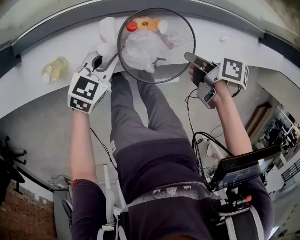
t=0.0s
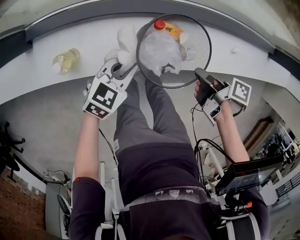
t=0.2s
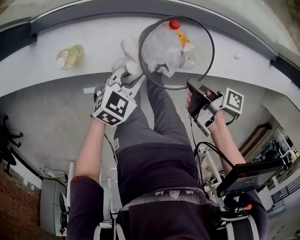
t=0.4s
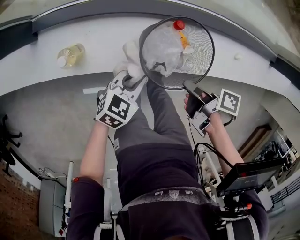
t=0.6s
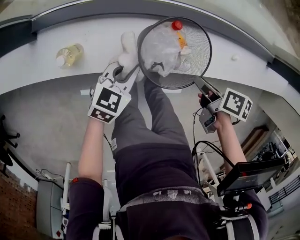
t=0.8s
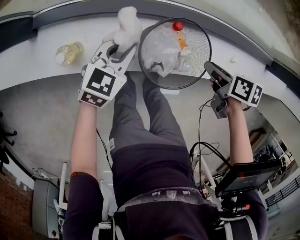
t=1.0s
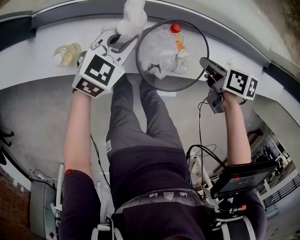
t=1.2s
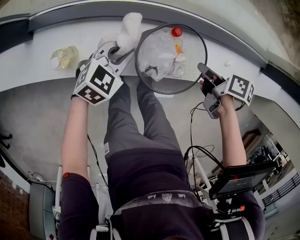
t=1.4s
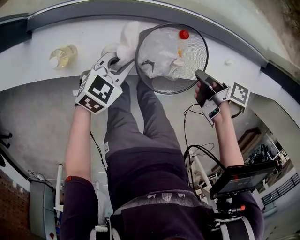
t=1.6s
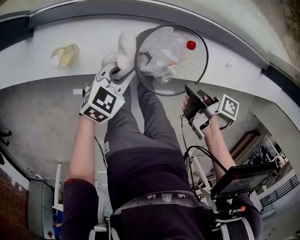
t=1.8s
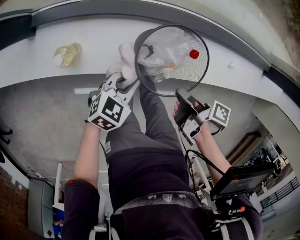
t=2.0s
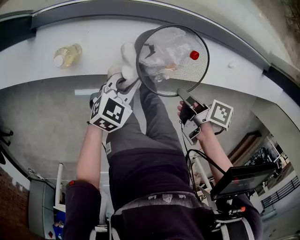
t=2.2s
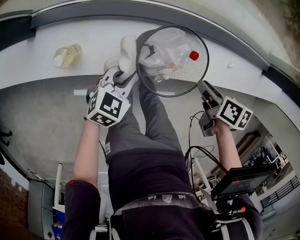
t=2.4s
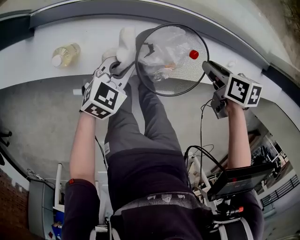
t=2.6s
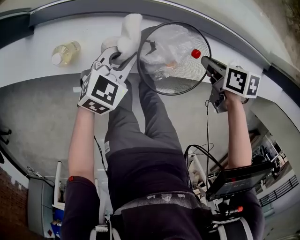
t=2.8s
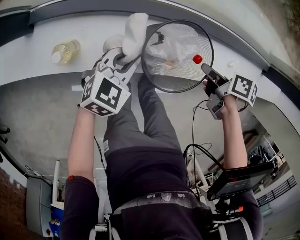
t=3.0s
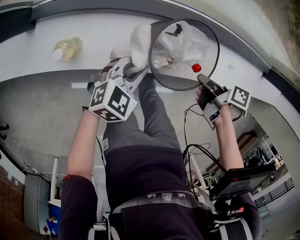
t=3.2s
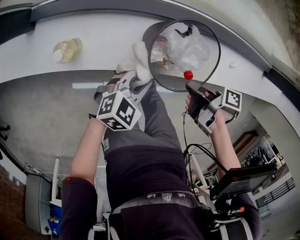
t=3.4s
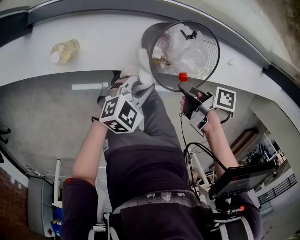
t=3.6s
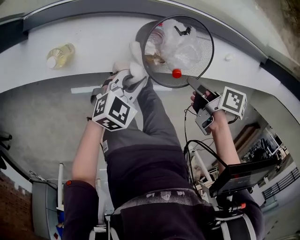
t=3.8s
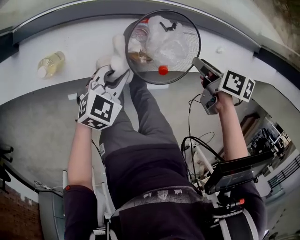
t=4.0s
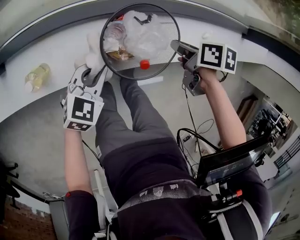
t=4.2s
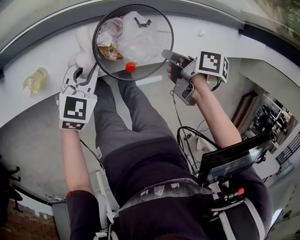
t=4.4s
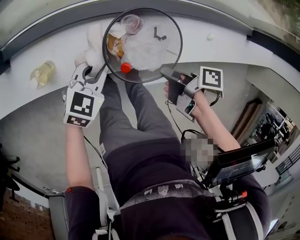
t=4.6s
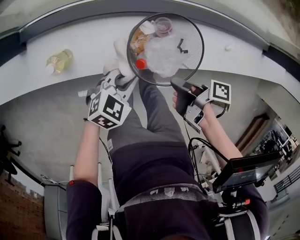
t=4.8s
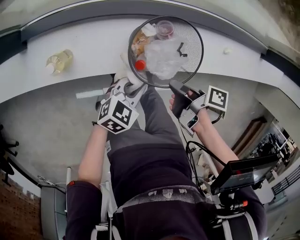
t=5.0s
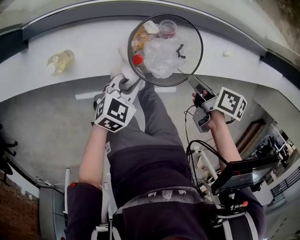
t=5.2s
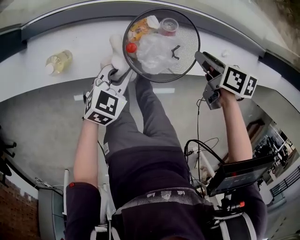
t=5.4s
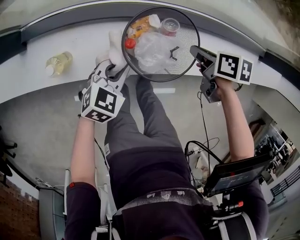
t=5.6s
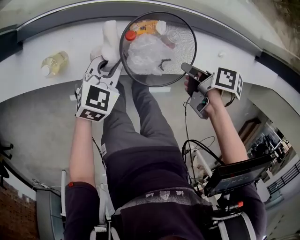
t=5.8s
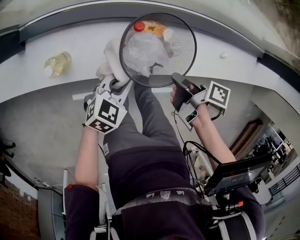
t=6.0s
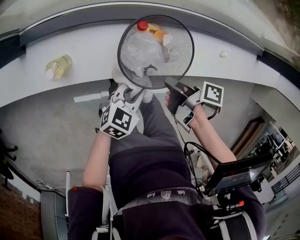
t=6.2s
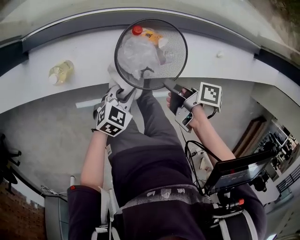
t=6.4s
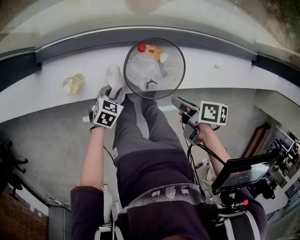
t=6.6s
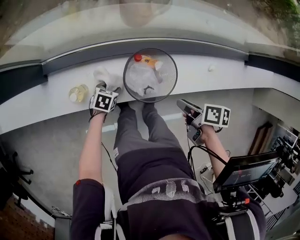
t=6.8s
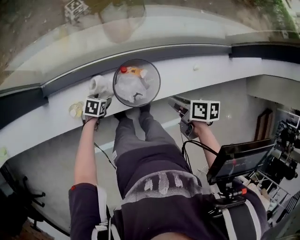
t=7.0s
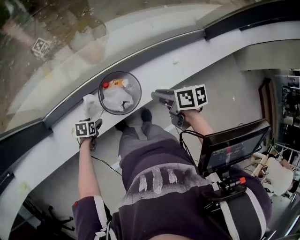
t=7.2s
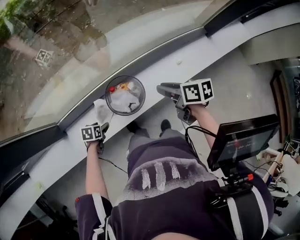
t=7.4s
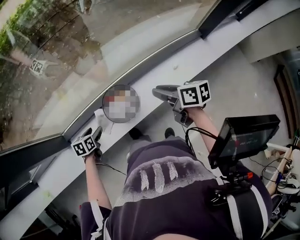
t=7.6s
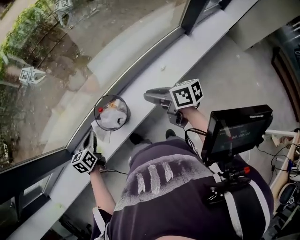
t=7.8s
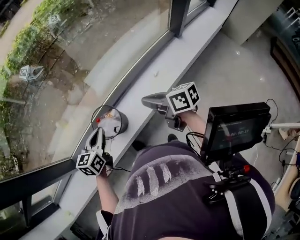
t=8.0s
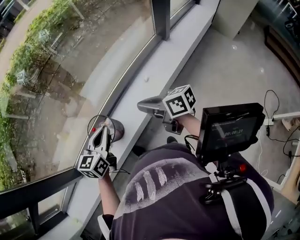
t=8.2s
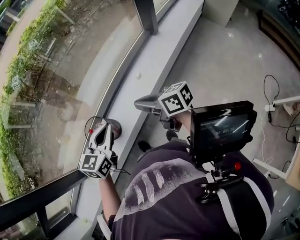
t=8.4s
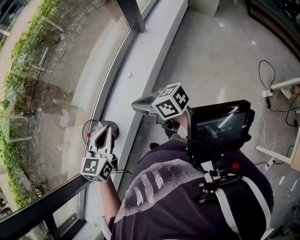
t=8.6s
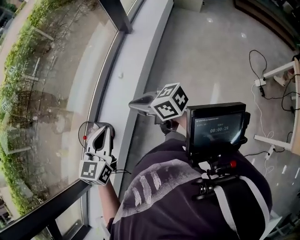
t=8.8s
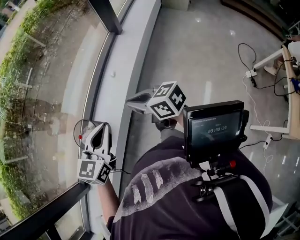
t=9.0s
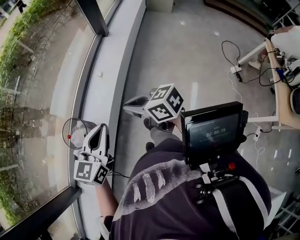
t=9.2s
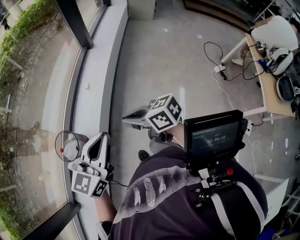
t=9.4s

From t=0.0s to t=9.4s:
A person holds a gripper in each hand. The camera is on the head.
From t=3.2s to t=4.8s: The left gripper ends up some 5 cm from where it was.
From t=6.2s to t=7.8s: The left gripper moves upward, roughly 20 cm, and opens and closes again.
From t=7.8s to t=9.4s: The left gripper moves about 35 cm, and tilts its fingers approximately 30 degrees upward.

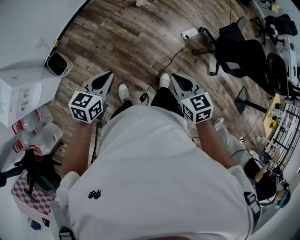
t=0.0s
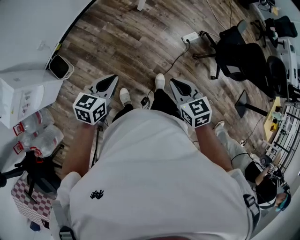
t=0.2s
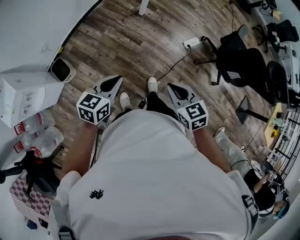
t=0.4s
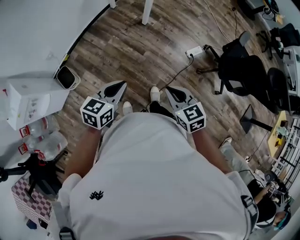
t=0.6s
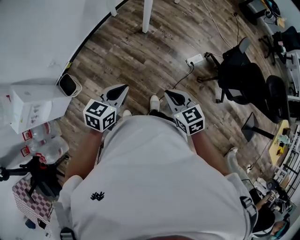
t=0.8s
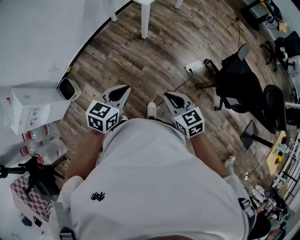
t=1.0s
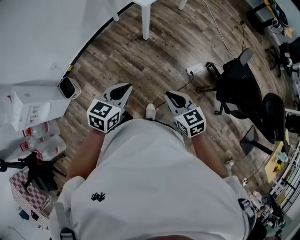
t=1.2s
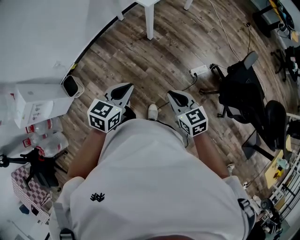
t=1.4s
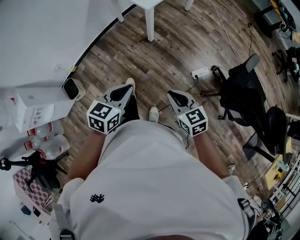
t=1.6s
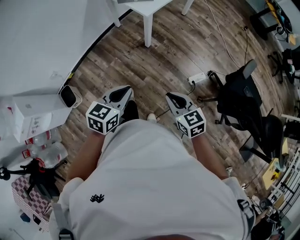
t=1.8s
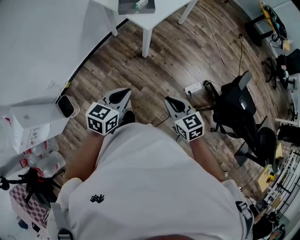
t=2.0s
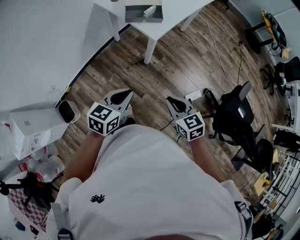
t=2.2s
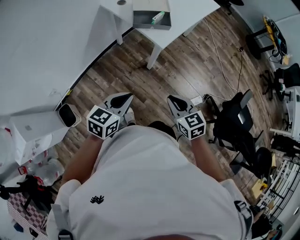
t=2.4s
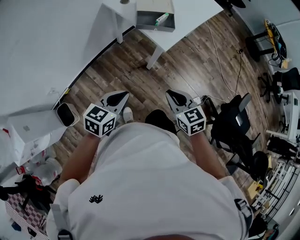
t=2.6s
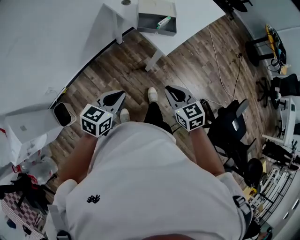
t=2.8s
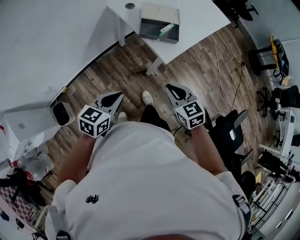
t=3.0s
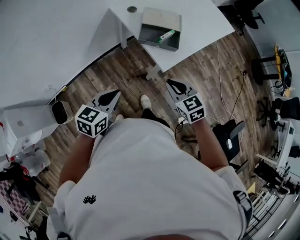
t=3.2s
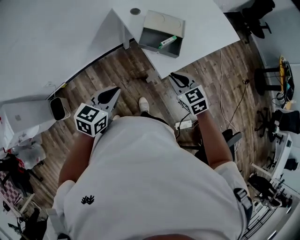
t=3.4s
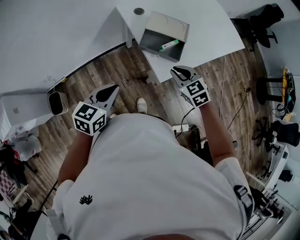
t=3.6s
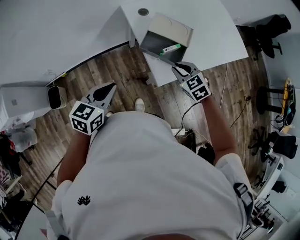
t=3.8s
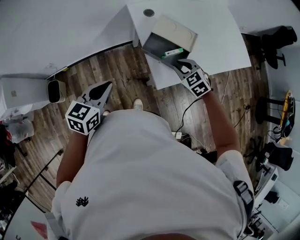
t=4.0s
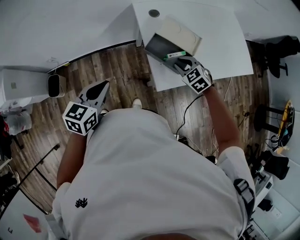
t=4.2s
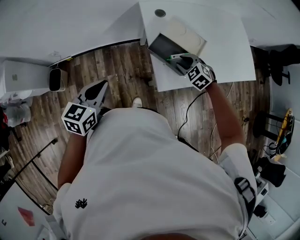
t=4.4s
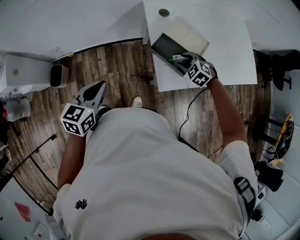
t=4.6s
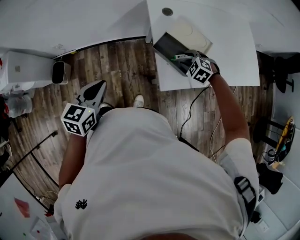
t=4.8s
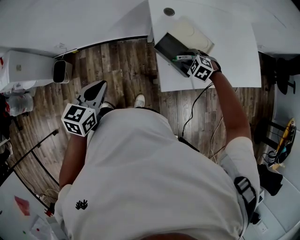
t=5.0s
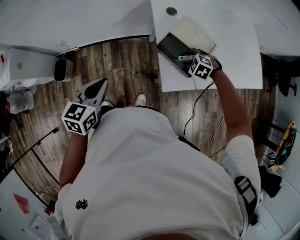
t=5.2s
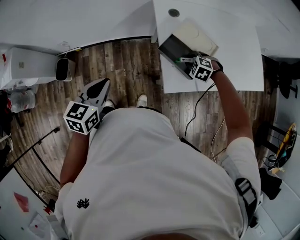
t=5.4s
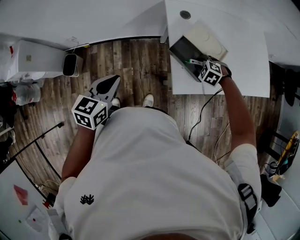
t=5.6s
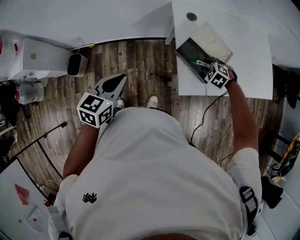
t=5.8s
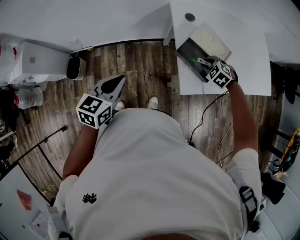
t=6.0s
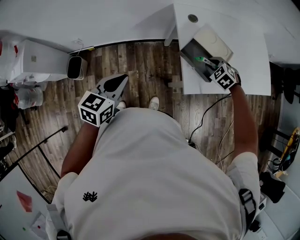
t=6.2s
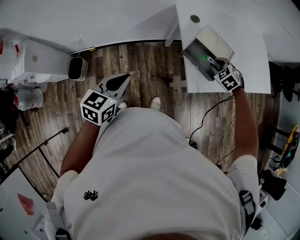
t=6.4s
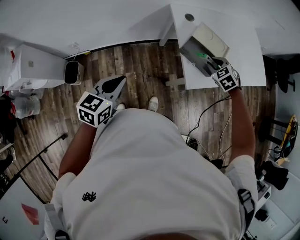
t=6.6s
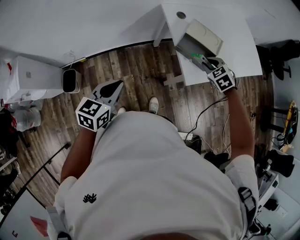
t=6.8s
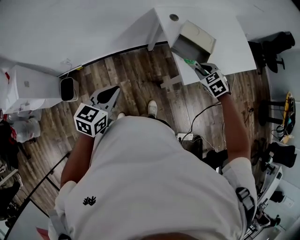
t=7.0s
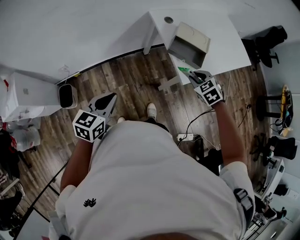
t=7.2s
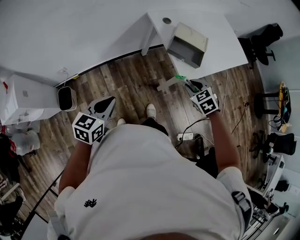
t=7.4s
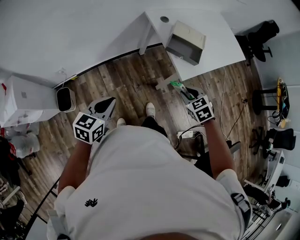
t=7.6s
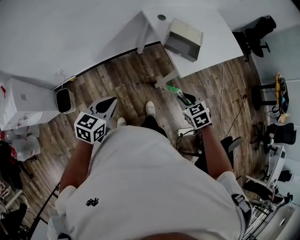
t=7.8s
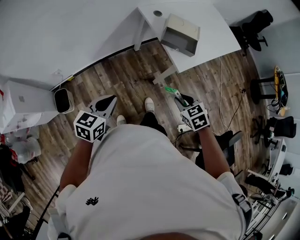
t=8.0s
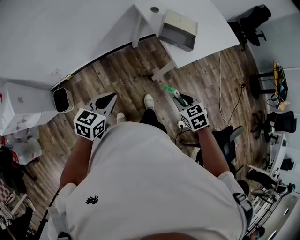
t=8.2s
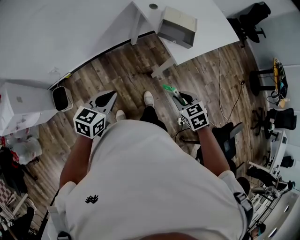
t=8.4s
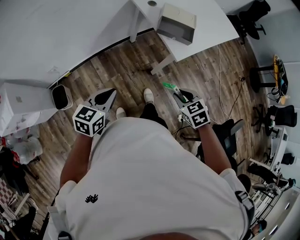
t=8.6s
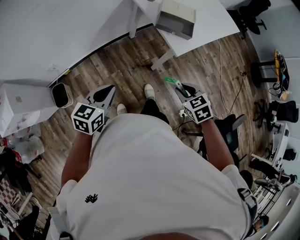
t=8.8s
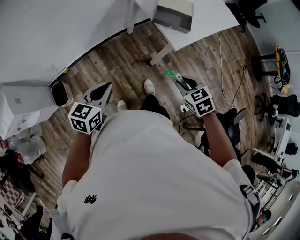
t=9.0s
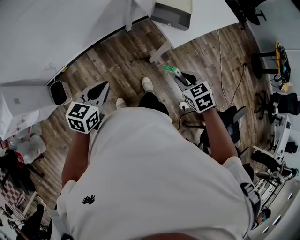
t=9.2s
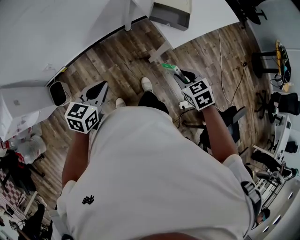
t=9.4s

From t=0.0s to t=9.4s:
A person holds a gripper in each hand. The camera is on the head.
From t=0.0s to t=1.6s: The right gripper is displaced forward and to the right by approximately 20 cm, while the left gripper goes roughly 25 cm to the right and forward.
From t=1.6s to t=3.2s: The right gripper heads forward, covering approximately 40 cm, and turns by about 20 degrees, while the left gripper shifts about 35 cm forward and to the left.
From t=3.2s to t=4.8s: The right gripper moves about 30 cm, rolls counterclockwise, seen from behind, by approximately 60 degrees, and opens up, while the left gripper turns by about 40 degrees.
From t=4.8s to t=6.2s: The right gripper closes.
From t=6.2s to t=7.8s: The left gripper moves backward and to the left, roughly 15 cm, and changes its angle by about 20 degrees; the right gripper goes some 30 cm backward, and rolls clockwise, seen from behind, by about 40 degrees.
From t=7.8s to t=9.4s: There are only small adjustments of the grippers.

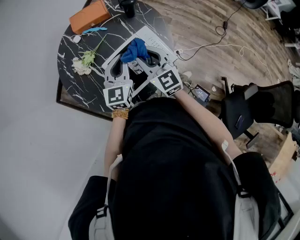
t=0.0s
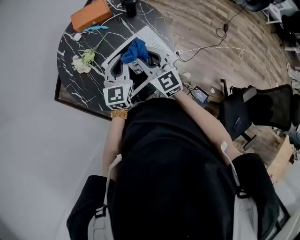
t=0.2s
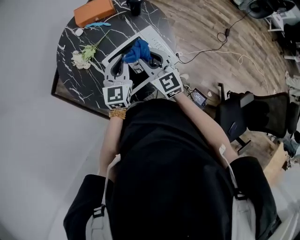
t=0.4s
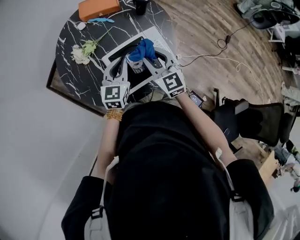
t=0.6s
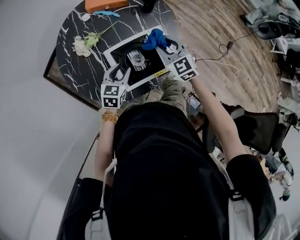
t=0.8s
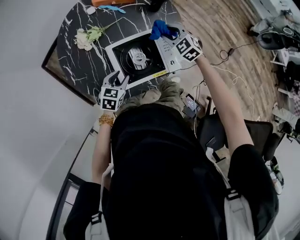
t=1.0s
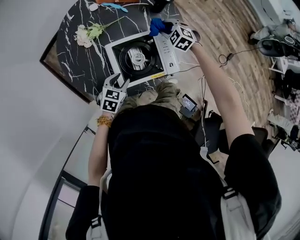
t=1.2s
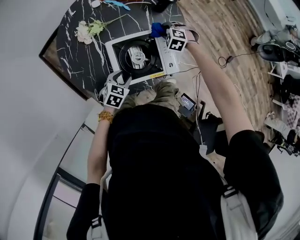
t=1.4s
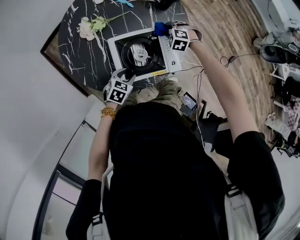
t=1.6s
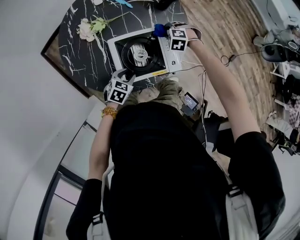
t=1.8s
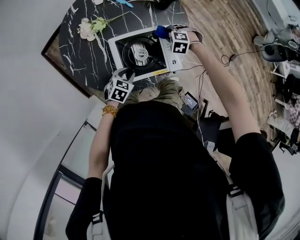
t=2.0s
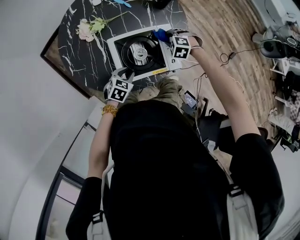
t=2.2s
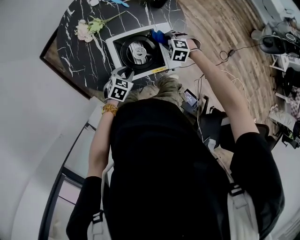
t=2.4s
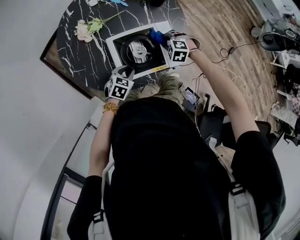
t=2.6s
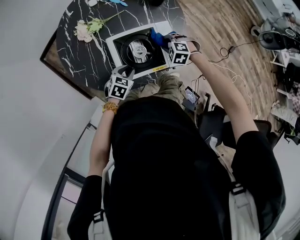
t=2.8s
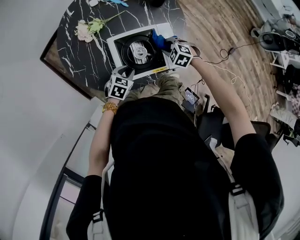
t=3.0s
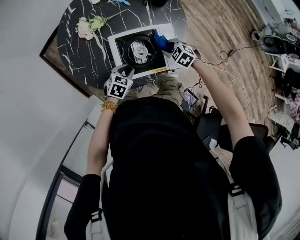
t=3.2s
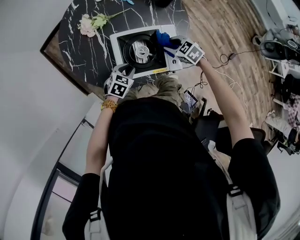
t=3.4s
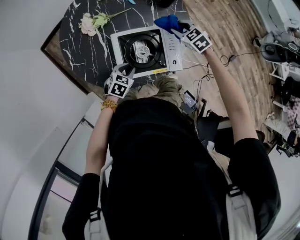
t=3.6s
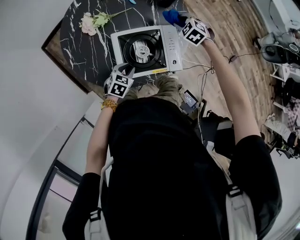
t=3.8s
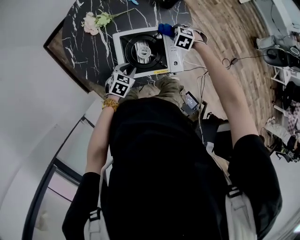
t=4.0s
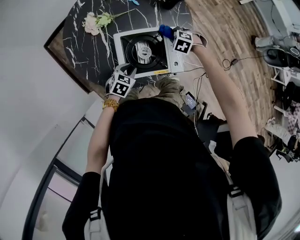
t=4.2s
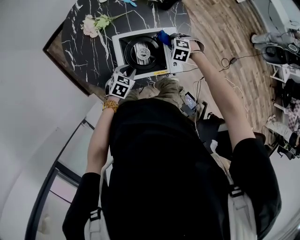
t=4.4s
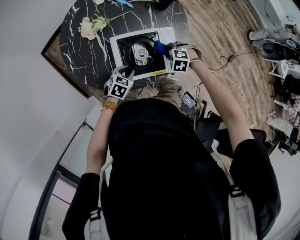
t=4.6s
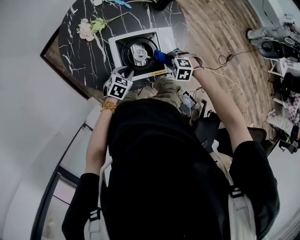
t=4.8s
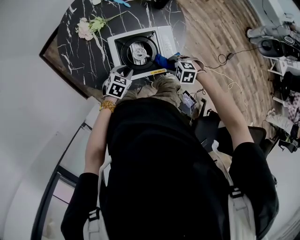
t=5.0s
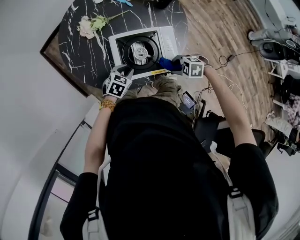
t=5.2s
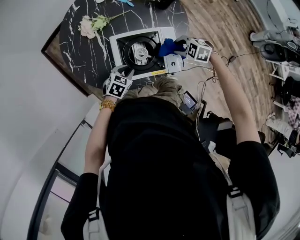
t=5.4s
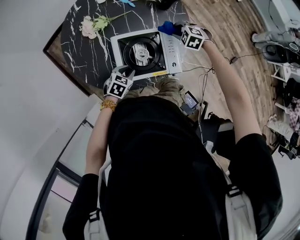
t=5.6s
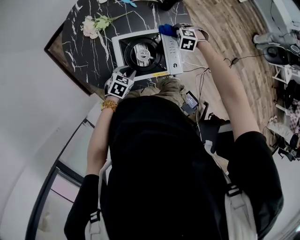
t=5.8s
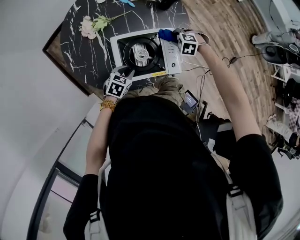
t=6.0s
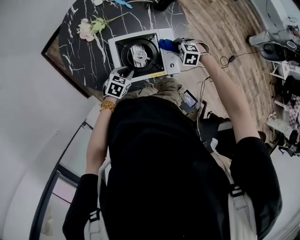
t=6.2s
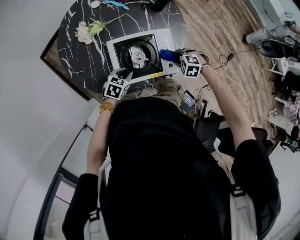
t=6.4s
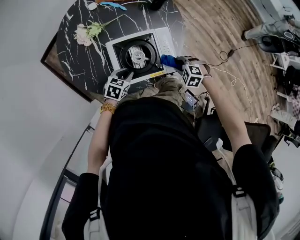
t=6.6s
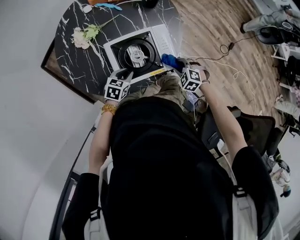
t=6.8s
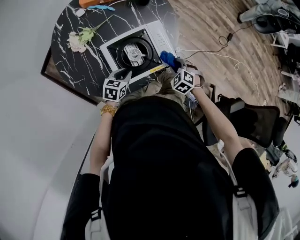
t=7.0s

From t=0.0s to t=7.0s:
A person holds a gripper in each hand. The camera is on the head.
From t=0.0s to t=1.4s: The left gripper shifts roughly 20 cm downward and backward, tips its fingers downward by some 40 degrees, and opens its fingers, while the right gripper travels downward and forward by about 25 cm, and points its fingers approximately 60 degrees further downward.
From t=1.4s to t=2.8s: The right gripper heads backward, covering some 10 cm.
From t=2.8s to t=4.2s: The right gripper goes upward and returns, about 10 cm each way.
From t=5.6s to t=7.0s: The right gripper ends up some 20 cm from where it was, and rotates about 30 degrees.
